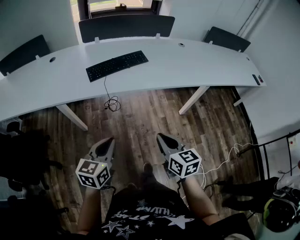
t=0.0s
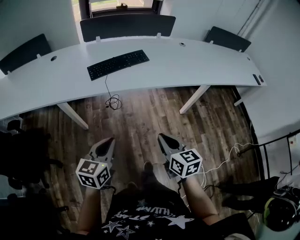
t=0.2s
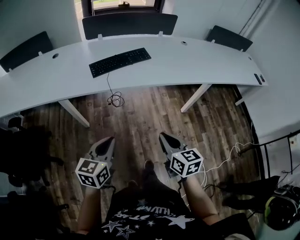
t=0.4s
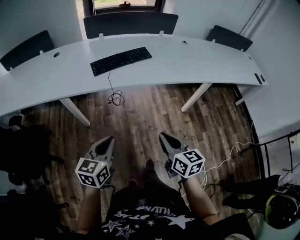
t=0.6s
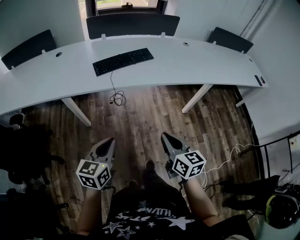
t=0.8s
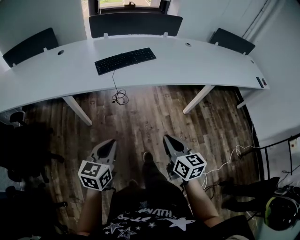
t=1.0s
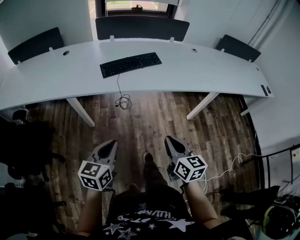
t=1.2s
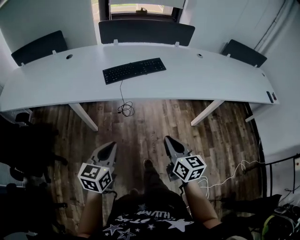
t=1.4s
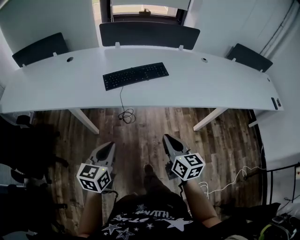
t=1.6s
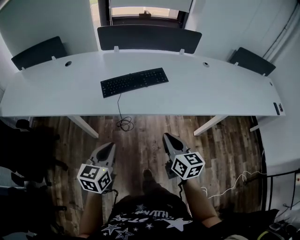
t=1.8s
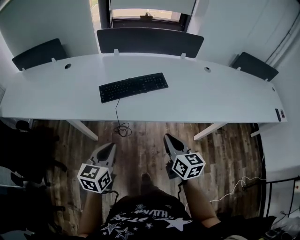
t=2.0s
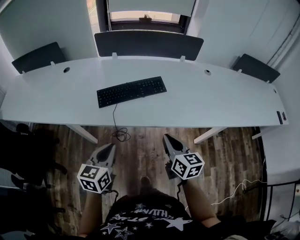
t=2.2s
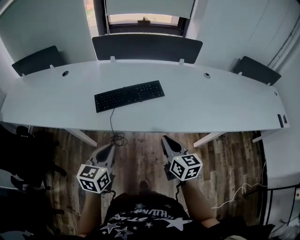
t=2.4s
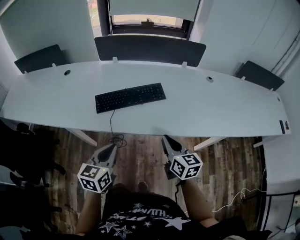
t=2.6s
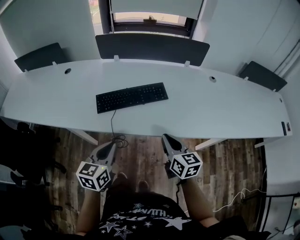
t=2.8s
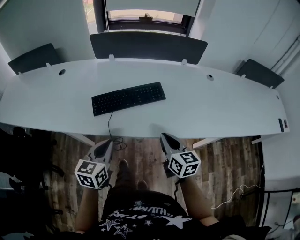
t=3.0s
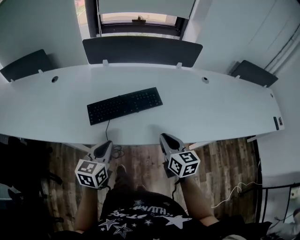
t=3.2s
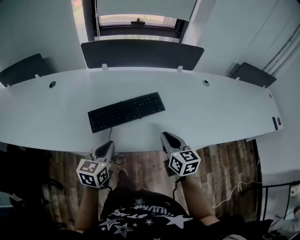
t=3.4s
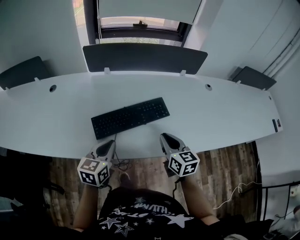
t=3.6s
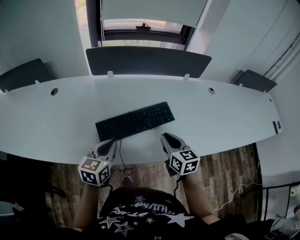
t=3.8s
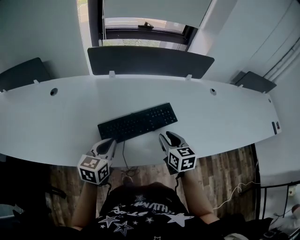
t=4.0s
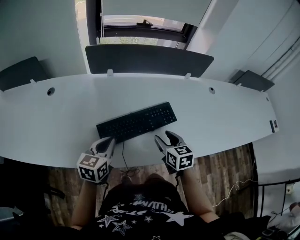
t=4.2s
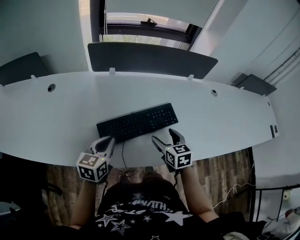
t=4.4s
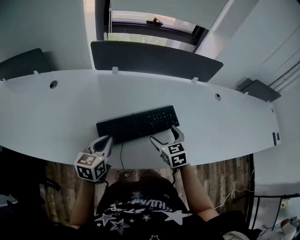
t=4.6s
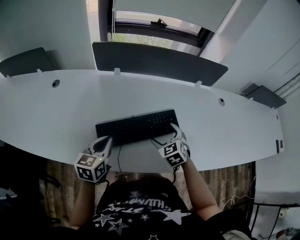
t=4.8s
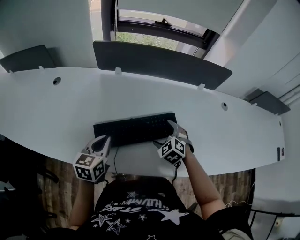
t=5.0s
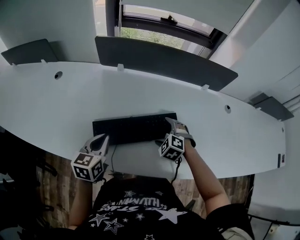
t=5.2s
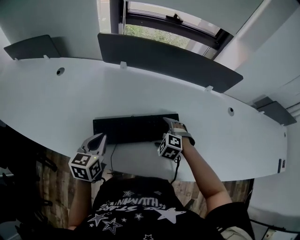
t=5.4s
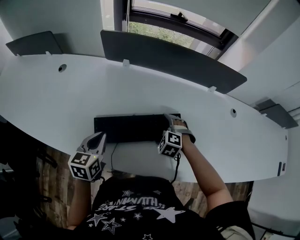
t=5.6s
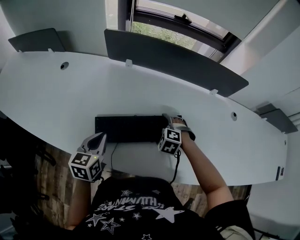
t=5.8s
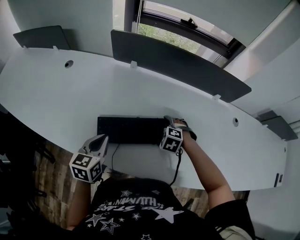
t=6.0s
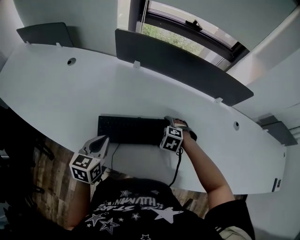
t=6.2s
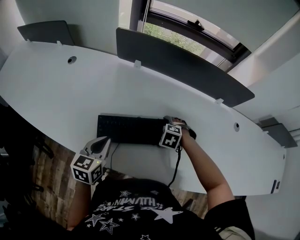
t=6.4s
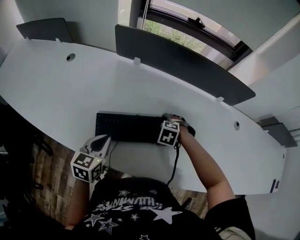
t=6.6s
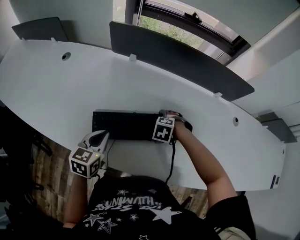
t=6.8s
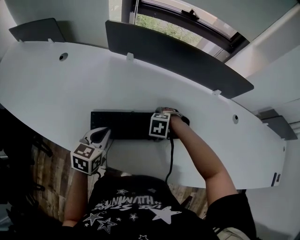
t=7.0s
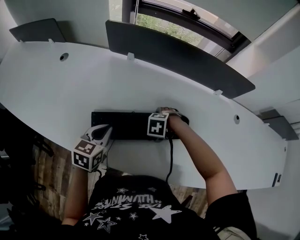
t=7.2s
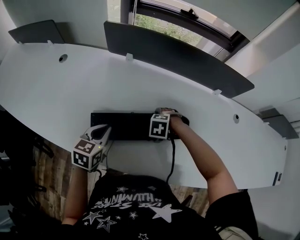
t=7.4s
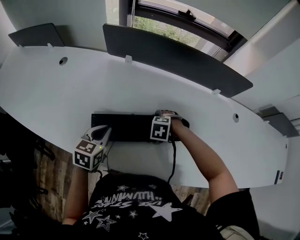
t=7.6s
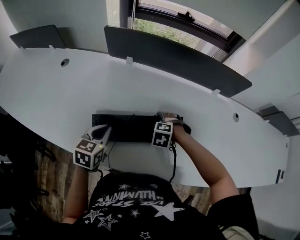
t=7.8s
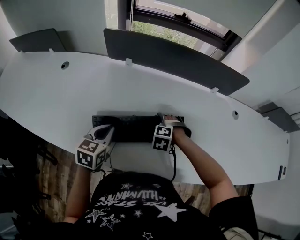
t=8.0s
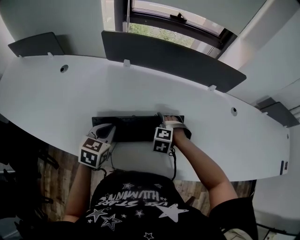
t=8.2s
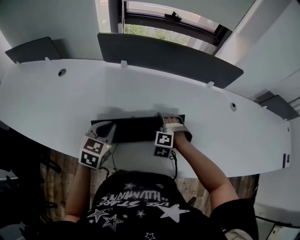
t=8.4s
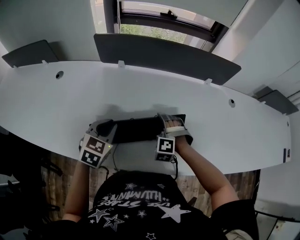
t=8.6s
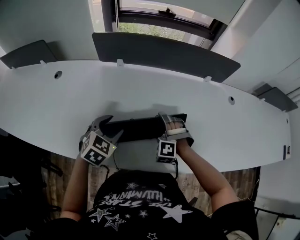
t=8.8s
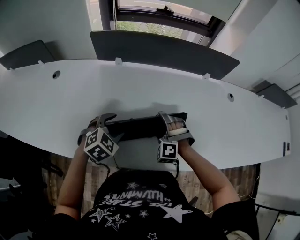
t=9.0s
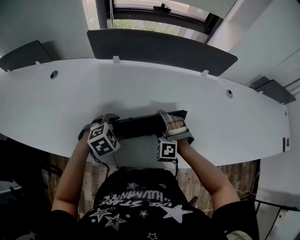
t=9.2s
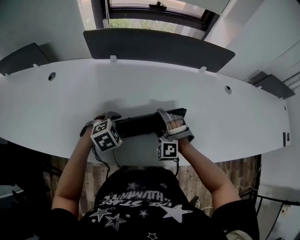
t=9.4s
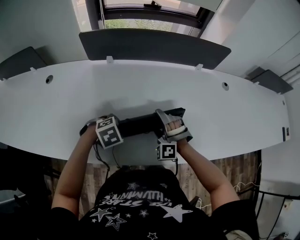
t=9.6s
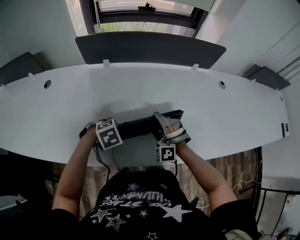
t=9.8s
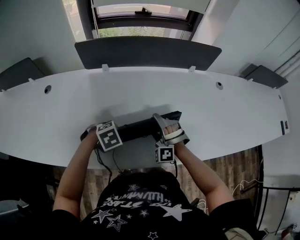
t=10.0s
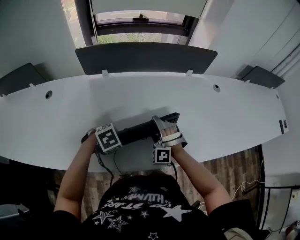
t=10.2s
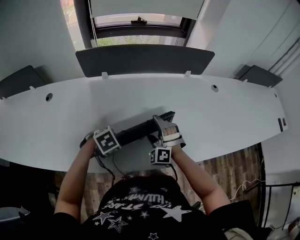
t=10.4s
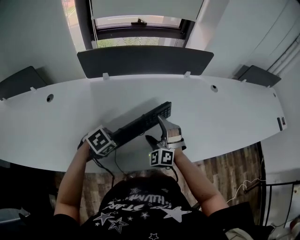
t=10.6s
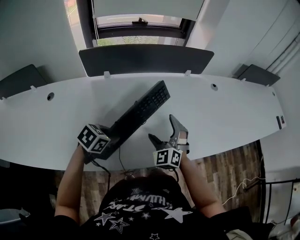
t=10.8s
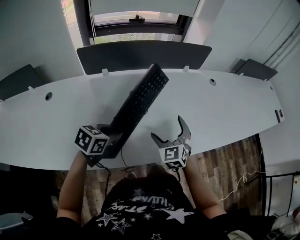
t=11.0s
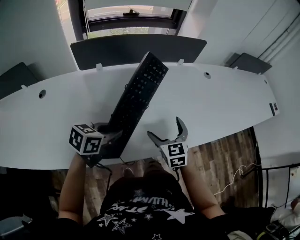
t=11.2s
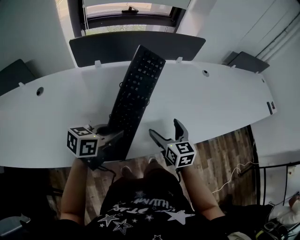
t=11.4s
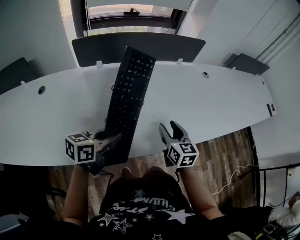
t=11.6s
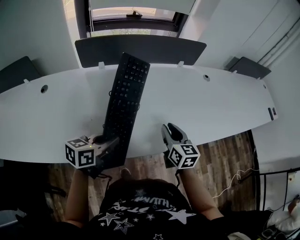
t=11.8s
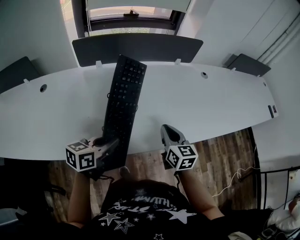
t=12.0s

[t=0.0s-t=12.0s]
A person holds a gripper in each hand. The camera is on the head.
t=0.0s to t=1.6s: The left gripper heads forward, covering roughly 5 cm, while the right gripper is displaced forward by about 10 cm.
t=1.6s to t=3.0s: Both grippers travel together forward, approximately 20 cm.
t=3.0s to t=4.4s: The two grippers go some 20 cm forward and to the left. The right gripper changes its angle by approximately 20 degrees, and opens.
t=4.4s to t=6.0s: The right gripper heads downward, covering roughly 10 cm, rotates around the line of its fingers by approximately 70 degrees, counterclockwise from behind, and opens; the left gripper rotates roughly 20 degrees.
t=6.0s to t=7.6s: The left gripper changes place by roughly 5 cm.
t=7.6s to t=9.0s: The left gripper twists about 50 degrees clockwise, seen from behind, and opens up. The right gripper shifts by roughly 5 cm, and angles its fingers upward, by roughly 40 degrees.
t=9.0s to t=10.4s: The right gripper turns by roughly 20 degrees. Meanwhile the left gripper changes place by about 5 cm, changes its angle by roughly 30 degrees, and closes.
t=10.4s to t=12.0s: The left gripper shifts about 15 cm upward and backward, and tips its fingers upward by some 50 degrees. Meanwhile the right gripper is displaced to the right, upward and backward by roughly 15 cm, twists some 90 degrees clockwise, seen from behind, and closes its fingers.

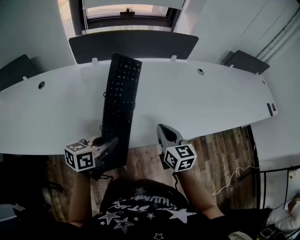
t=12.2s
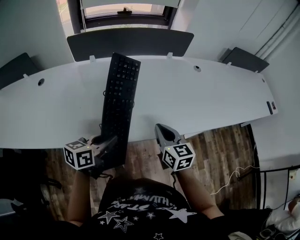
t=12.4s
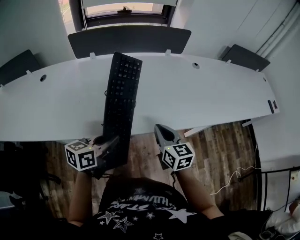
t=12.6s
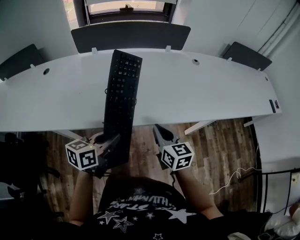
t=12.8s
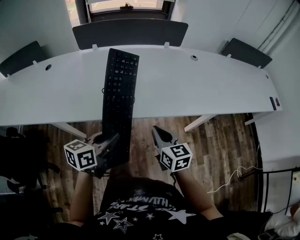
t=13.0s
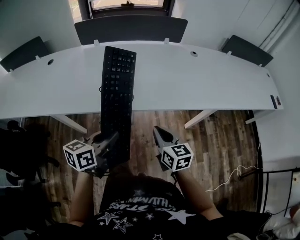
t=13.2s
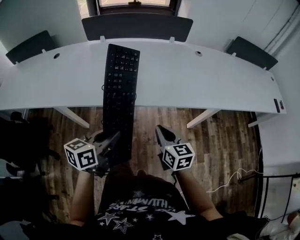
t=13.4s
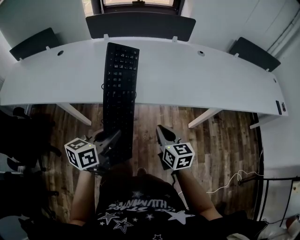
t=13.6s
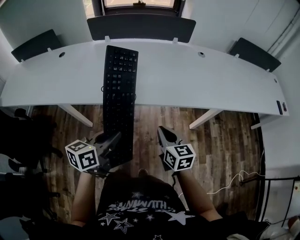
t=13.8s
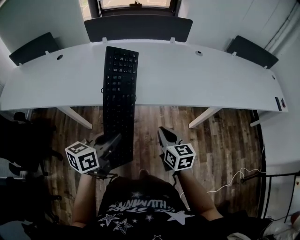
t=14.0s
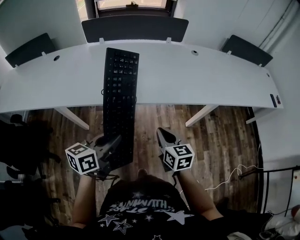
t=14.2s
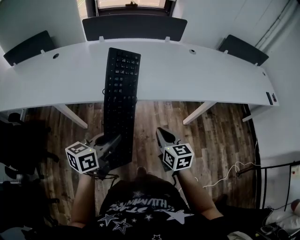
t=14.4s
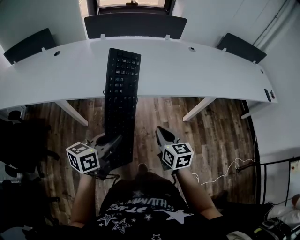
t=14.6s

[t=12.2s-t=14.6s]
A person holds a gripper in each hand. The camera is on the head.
t=12.2s to t=13.4s: The grippers both shift backward and to the right by some 25 cm.
t=13.4s to t=14.6s: The two grippers go approximately 5 cm backward.

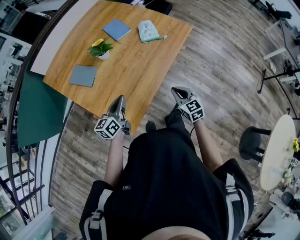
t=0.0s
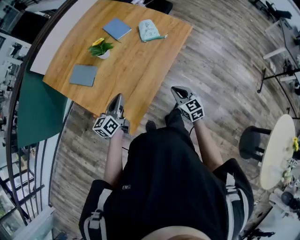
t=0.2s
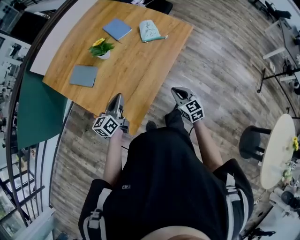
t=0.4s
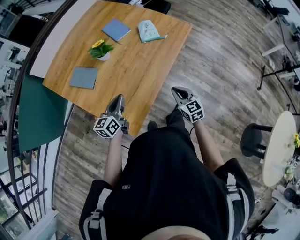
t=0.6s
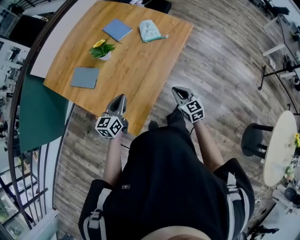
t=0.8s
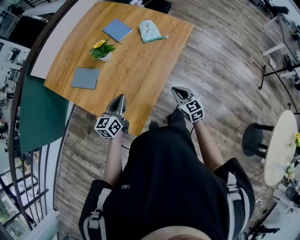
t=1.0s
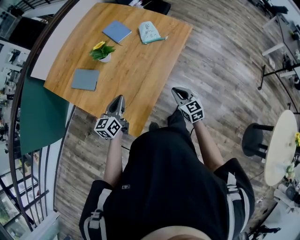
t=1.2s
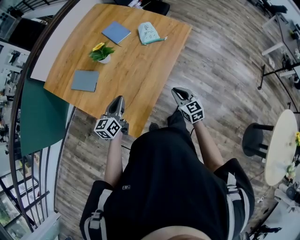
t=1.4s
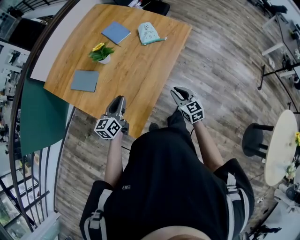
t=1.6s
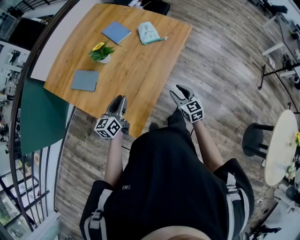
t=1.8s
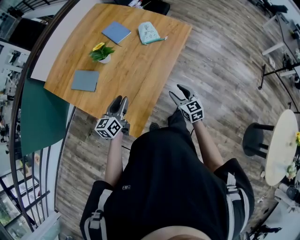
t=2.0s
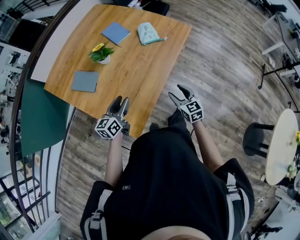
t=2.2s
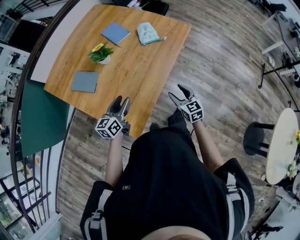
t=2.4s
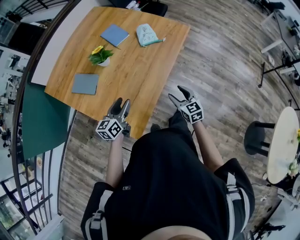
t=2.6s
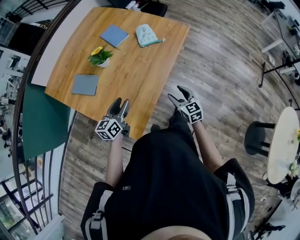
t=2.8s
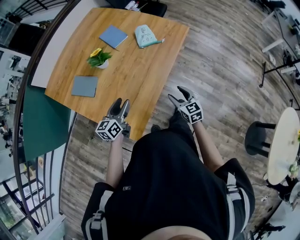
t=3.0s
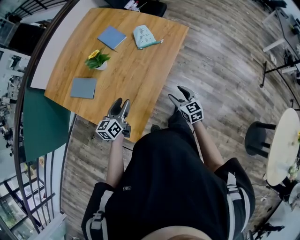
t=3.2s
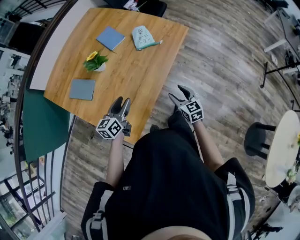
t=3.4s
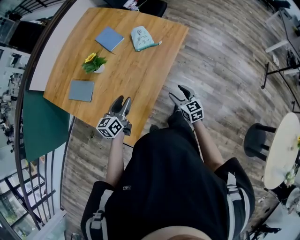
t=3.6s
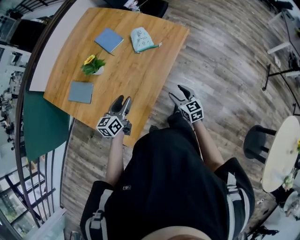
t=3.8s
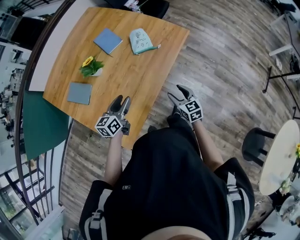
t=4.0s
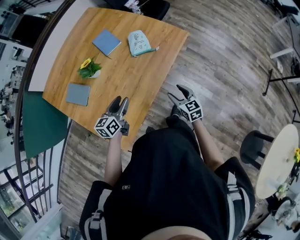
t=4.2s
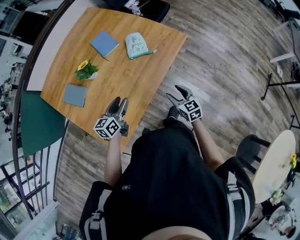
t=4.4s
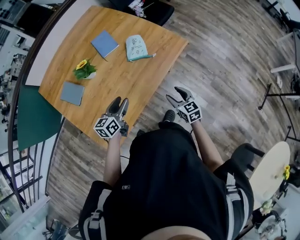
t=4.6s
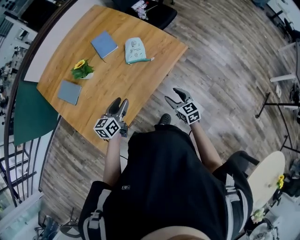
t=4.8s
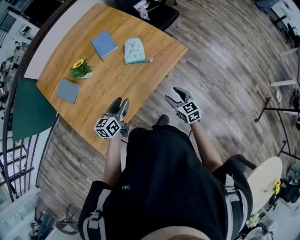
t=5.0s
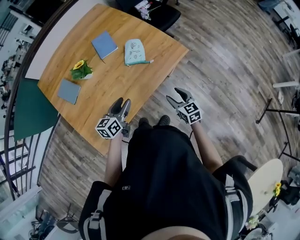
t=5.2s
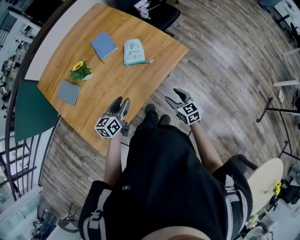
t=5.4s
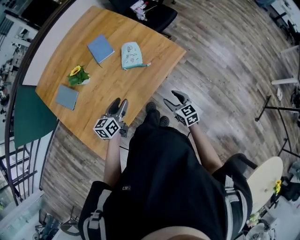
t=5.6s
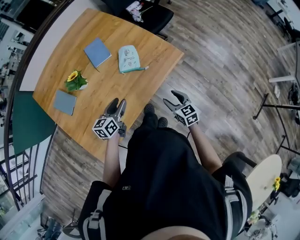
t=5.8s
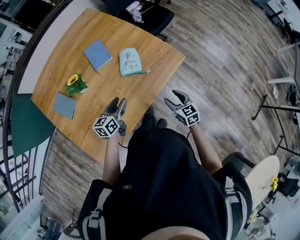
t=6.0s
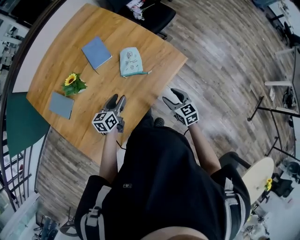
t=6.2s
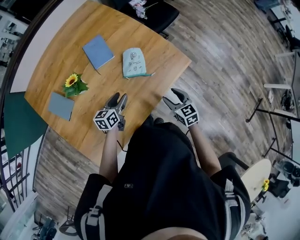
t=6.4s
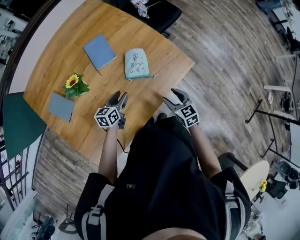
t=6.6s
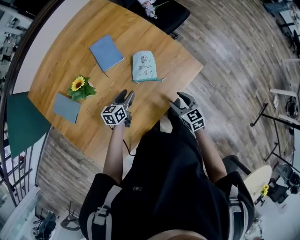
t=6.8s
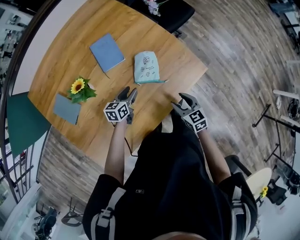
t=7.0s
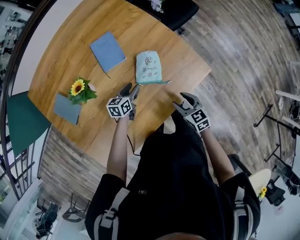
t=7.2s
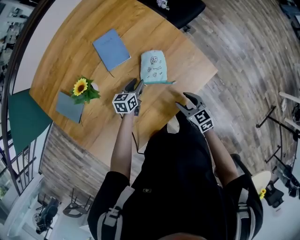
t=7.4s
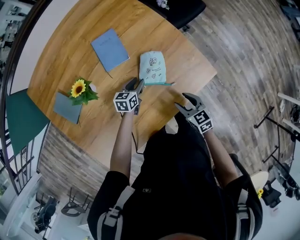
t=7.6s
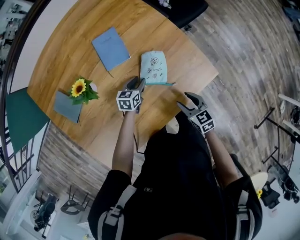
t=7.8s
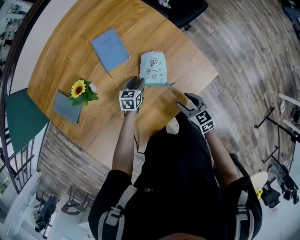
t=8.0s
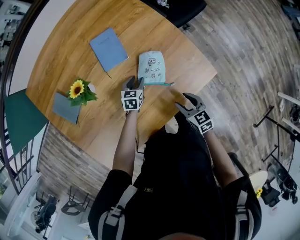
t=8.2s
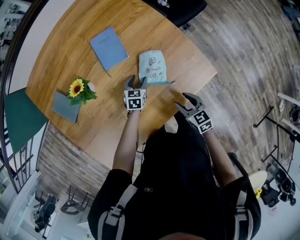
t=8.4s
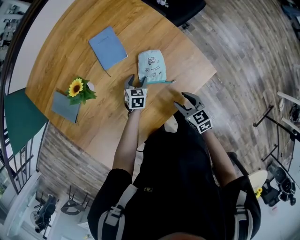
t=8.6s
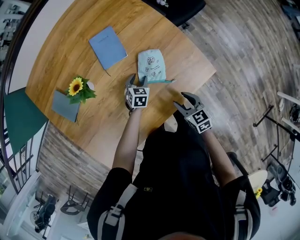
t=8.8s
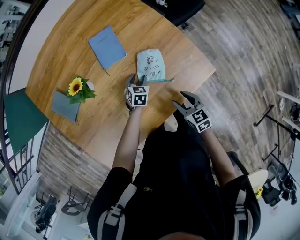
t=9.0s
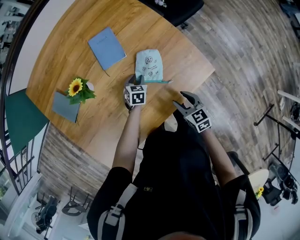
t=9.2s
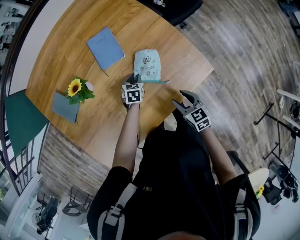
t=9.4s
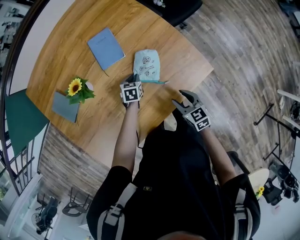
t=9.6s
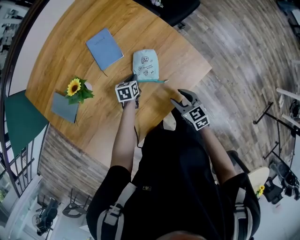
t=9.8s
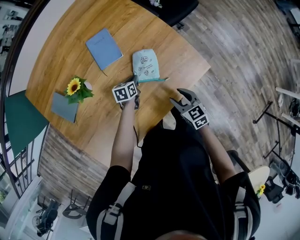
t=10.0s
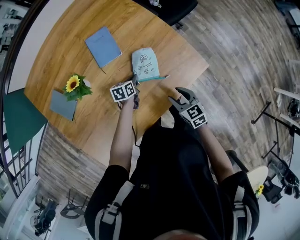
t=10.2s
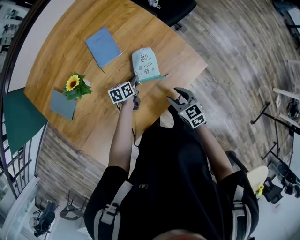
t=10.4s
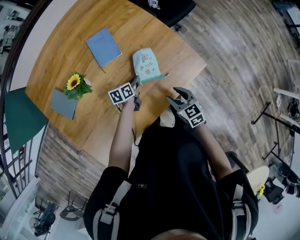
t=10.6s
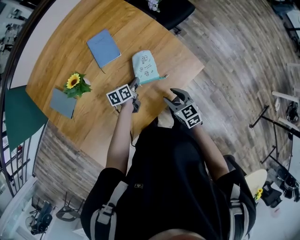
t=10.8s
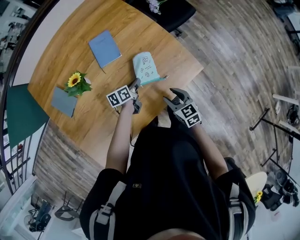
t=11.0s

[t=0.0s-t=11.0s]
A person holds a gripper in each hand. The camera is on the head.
t=0.0s to t=1.6s: The grippers make only small movements.
t=1.6s to t=3.2s: The right gripper opens up, while the left gripper opens.
t=3.2s to t=4.8s: The left gripper goes about 20 cm to the right and forward; the right gripper travels forward and to the right by roughly 20 cm.
t=4.8s to t=6.2s: The right gripper travels forward by some 10 cm; the left gripper heads forward and downward, covering approximately 15 cm.
t=6.2s to t=7.8s: The right gripper is displaced forward and downward by some 10 cm, while the left gripper heads forward and downward, covering approximately 20 cm.
t=9.4s to t=11.0s: The left gripper goes roughly 10 cm upward and backward, and changes its angle by some 50 degrees.
